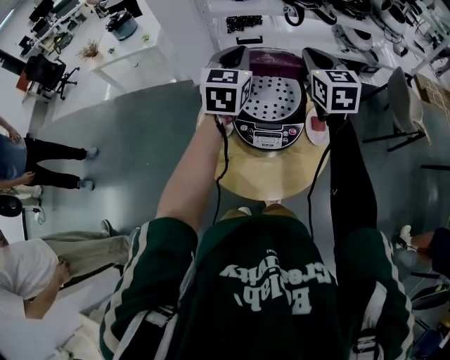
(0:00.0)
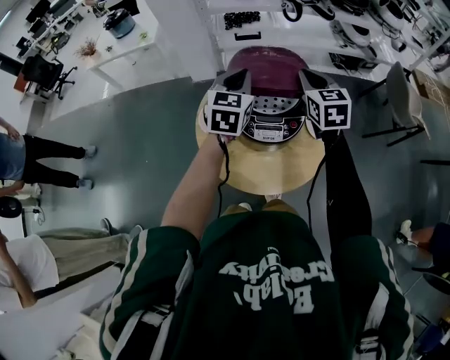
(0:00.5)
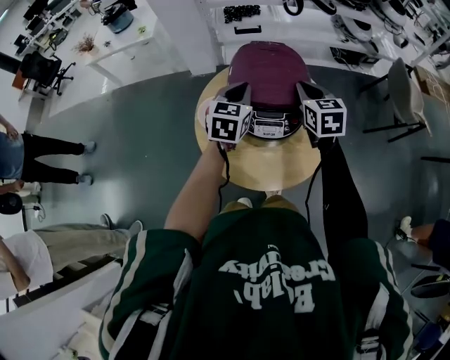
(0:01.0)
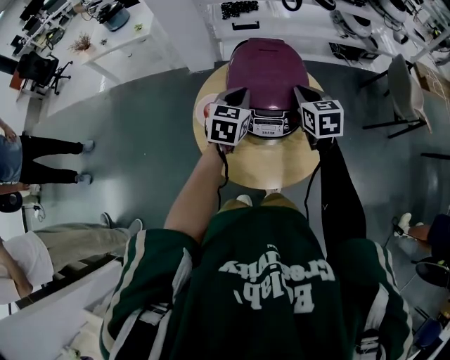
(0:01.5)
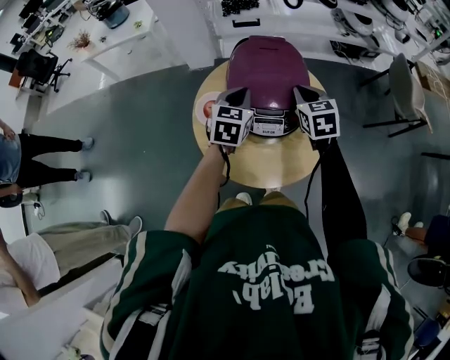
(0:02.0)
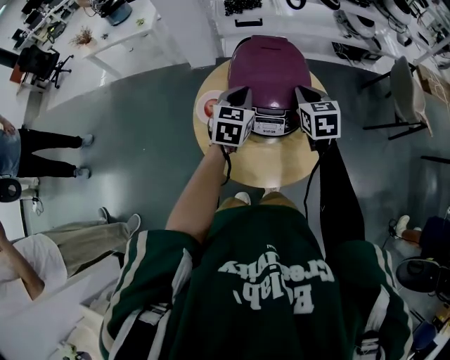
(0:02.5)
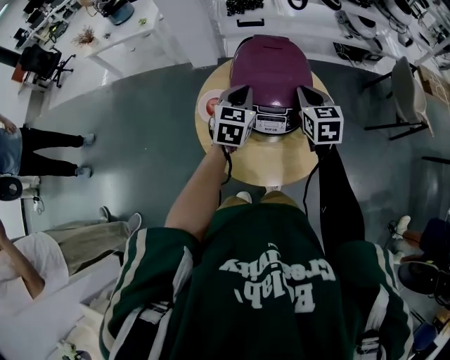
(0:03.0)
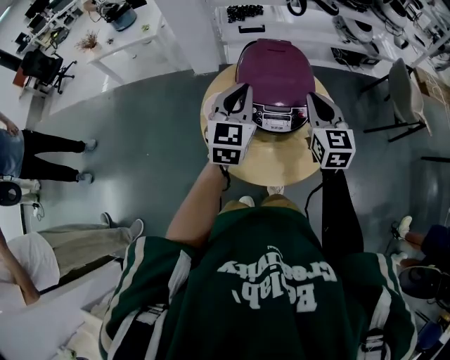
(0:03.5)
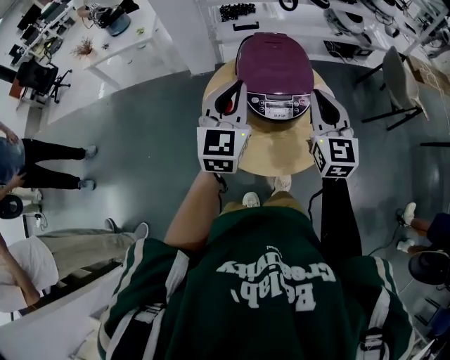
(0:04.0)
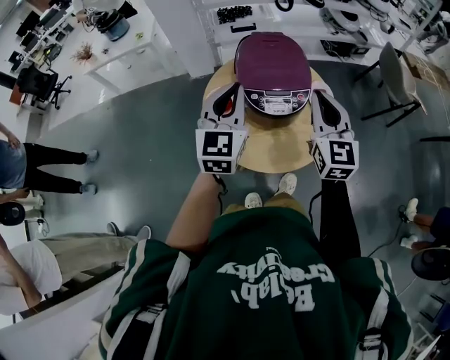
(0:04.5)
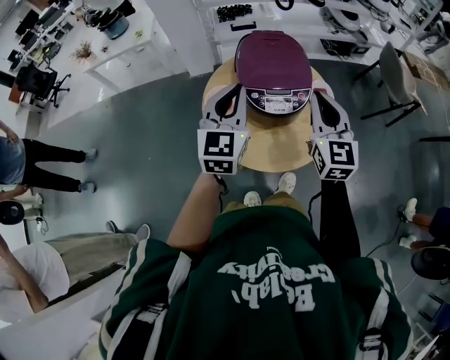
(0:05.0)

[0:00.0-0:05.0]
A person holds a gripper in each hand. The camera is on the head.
0:00.0 to 0:02.5: Both grippers travel together downward and backward, some 20 cm.
0:02.5 to 0:05.0: The right gripper goes approximately 20 cm backward and upward, and points its fingers roughly 30 degrees further upward; the left gripper is displaced upward and backward by about 20 cm, and changes its angle by approximately 20 degrees.

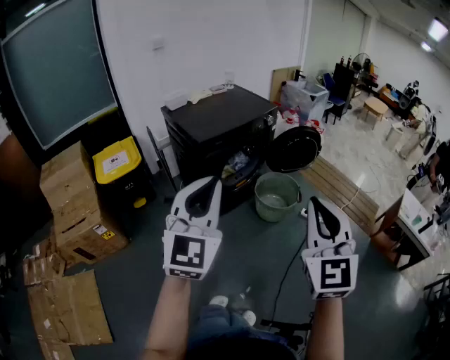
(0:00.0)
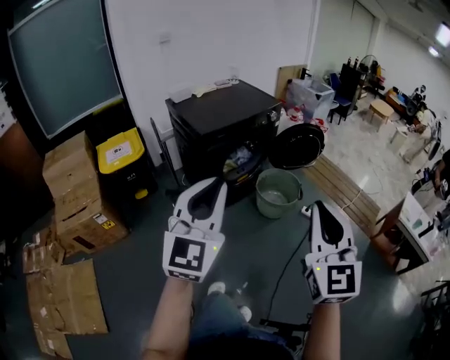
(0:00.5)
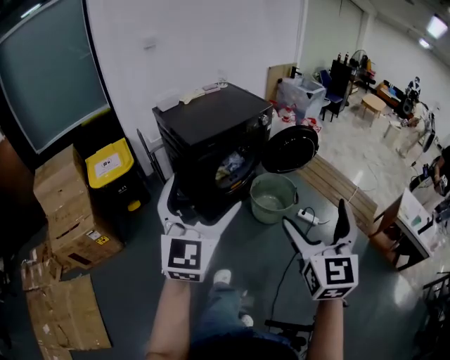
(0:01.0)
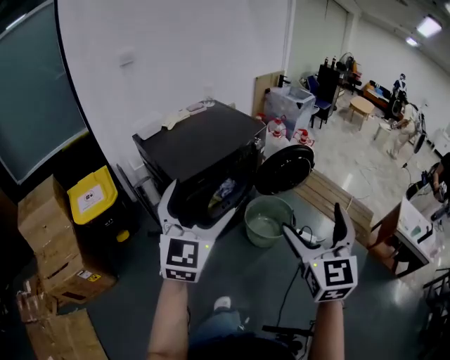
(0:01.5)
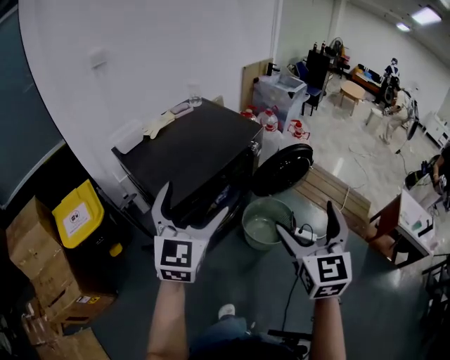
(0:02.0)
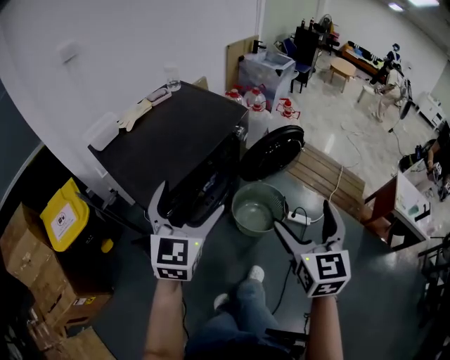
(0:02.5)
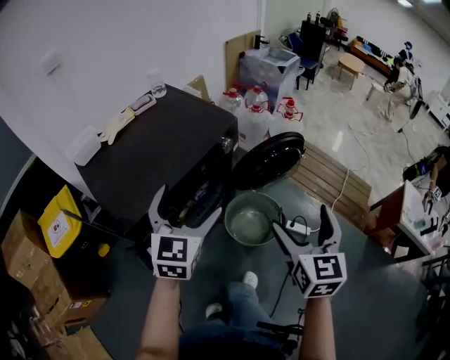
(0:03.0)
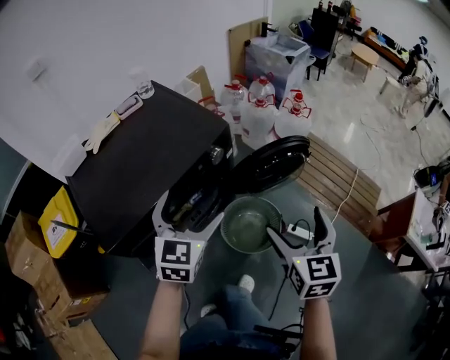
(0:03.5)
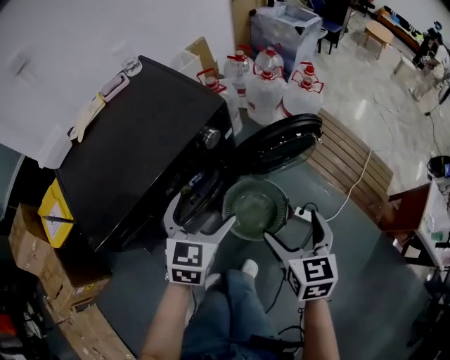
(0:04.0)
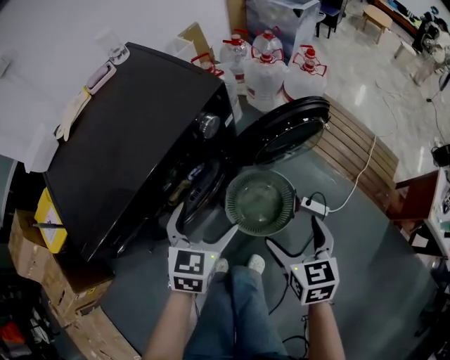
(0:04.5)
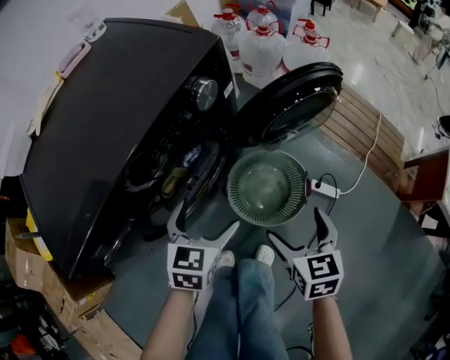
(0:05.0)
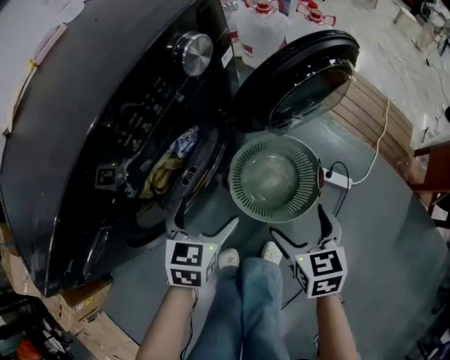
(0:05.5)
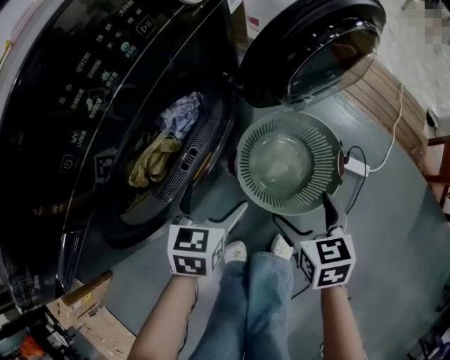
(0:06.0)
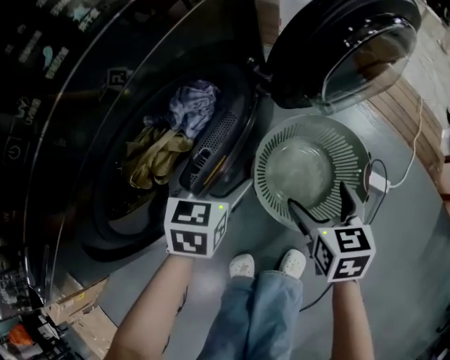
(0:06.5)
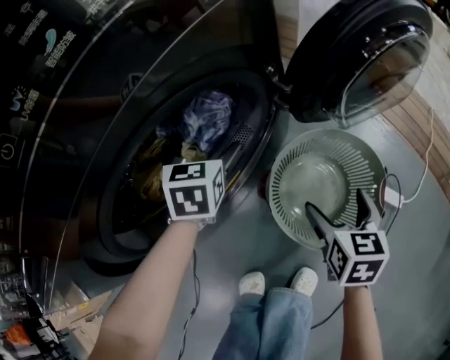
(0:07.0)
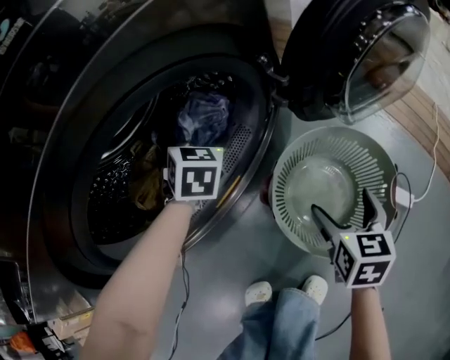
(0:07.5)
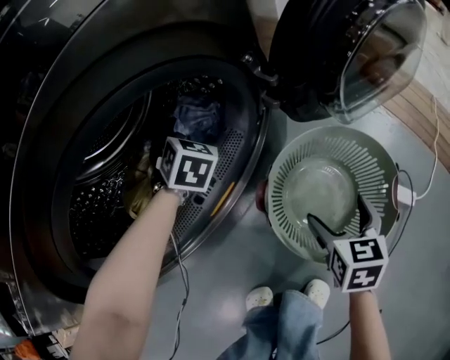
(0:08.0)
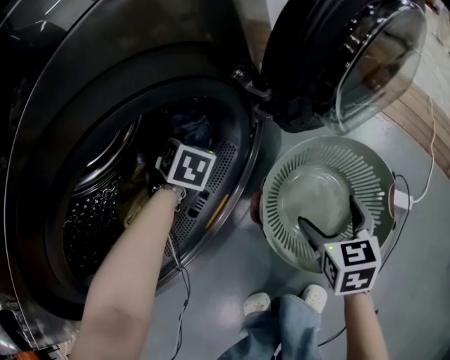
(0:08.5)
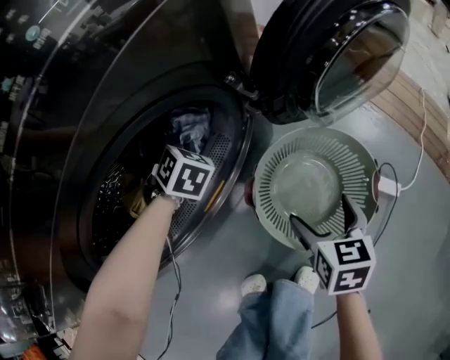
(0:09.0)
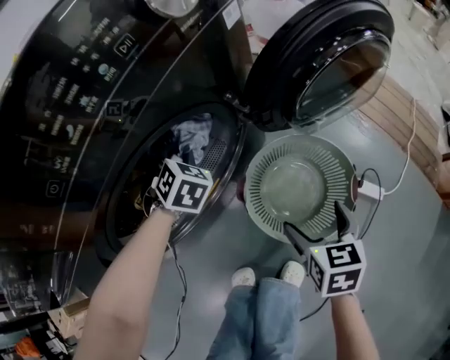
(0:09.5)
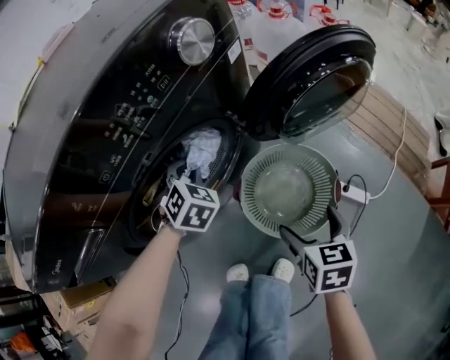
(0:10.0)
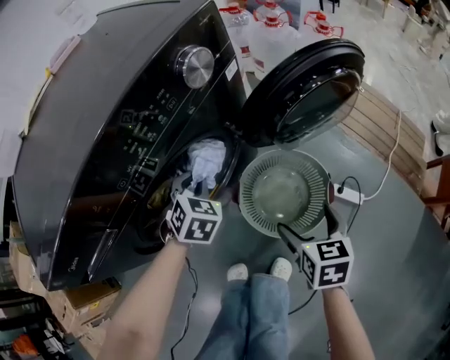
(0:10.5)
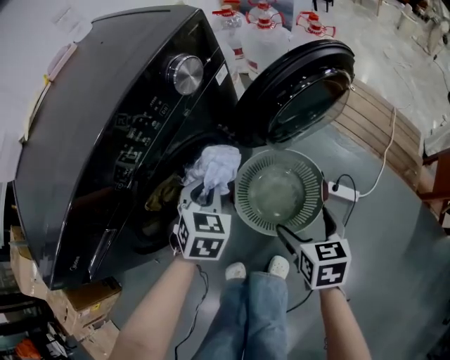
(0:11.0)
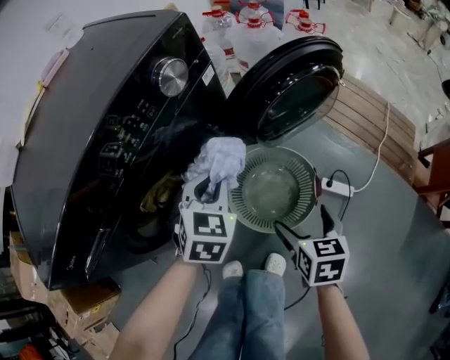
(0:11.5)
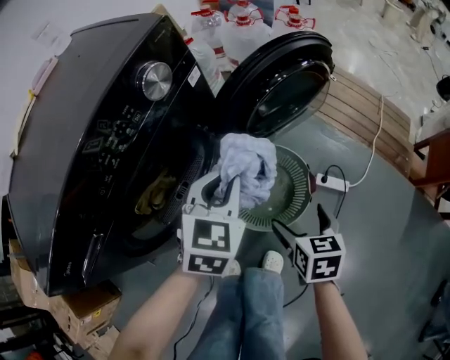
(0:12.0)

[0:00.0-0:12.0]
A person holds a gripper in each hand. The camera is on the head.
0:00.0 to 0:02.0: The grippers both shift forward by some 35 cm. The right gripper turns by roughly 20 degrees, and opens. The left gripper opens up.
0:02.0 to 0:04.0: Both grippers move forward, downward and to the right, some 40 cm. The right gripper changes its angle by about 30 degrees. Meanwhile the left gripper turns by roughly 30 degrees.
0:04.0 to 0:06.0: The grippers both shift downward by about 40 cm.
0:06.0 to 0:08.0: The left gripper travels forward by some 25 cm, and rotates some 40 degrees; the right gripper is displaced downward and forward by about 15 cm.
0:08.0 to 0:10.0: The right gripper heads upward, covering some 15 cm, while the left gripper travels backward and upward by roughly 20 cm, and closes up.
0:10.0 to 0:12.0: The right gripper shifts some 5 cm to the right, while the left gripper heads to the right, upward and backward, covering roughly 25 cm, and swivels roughly 30 degrees.

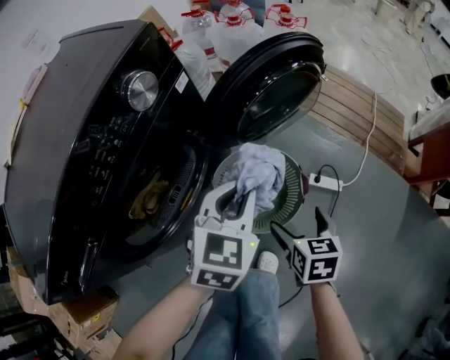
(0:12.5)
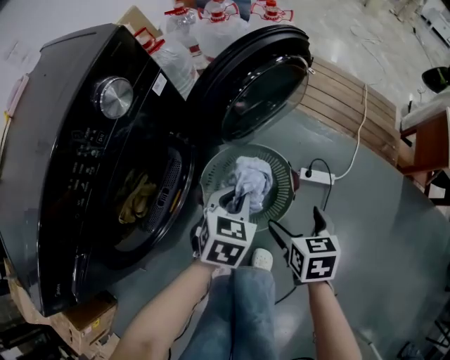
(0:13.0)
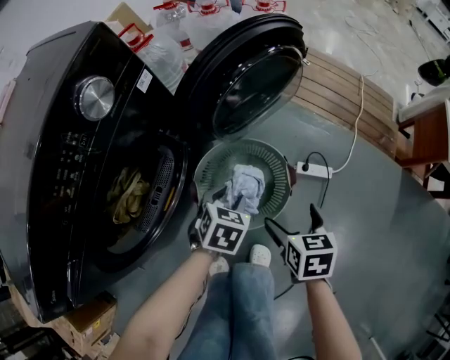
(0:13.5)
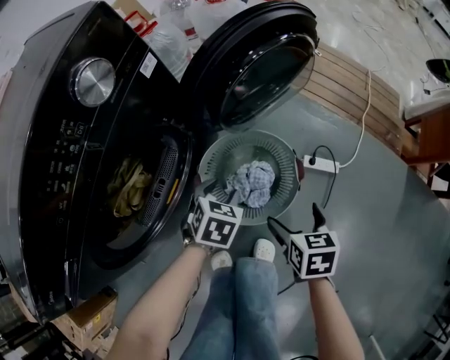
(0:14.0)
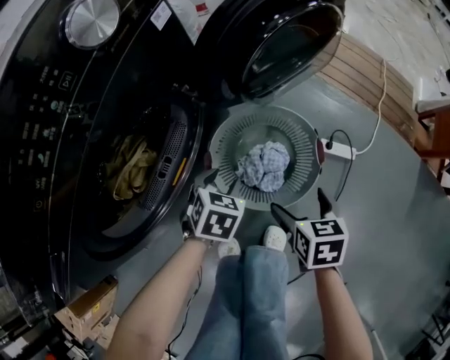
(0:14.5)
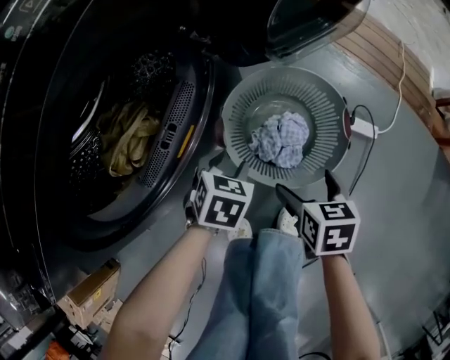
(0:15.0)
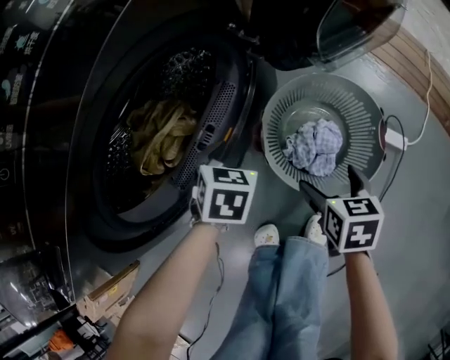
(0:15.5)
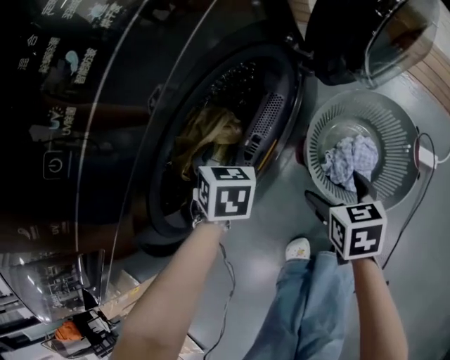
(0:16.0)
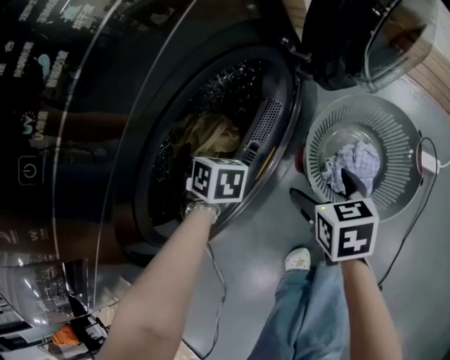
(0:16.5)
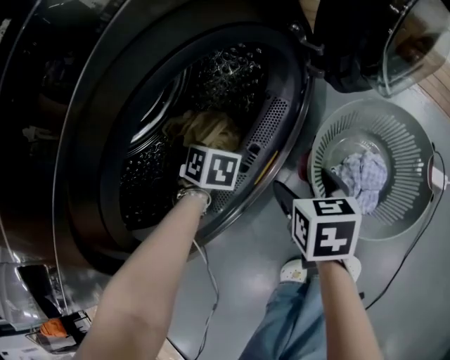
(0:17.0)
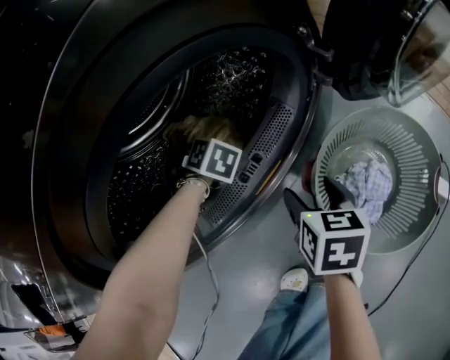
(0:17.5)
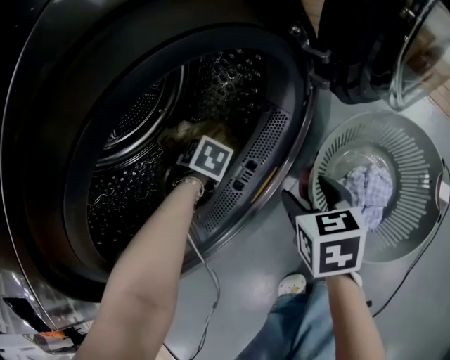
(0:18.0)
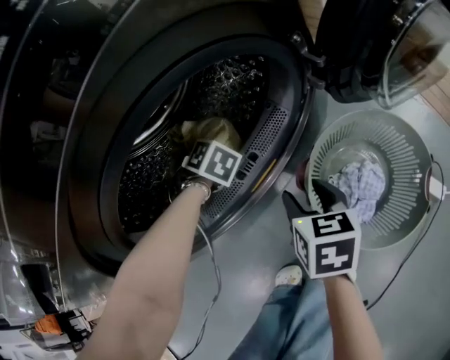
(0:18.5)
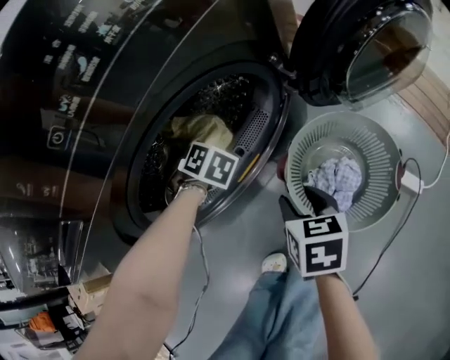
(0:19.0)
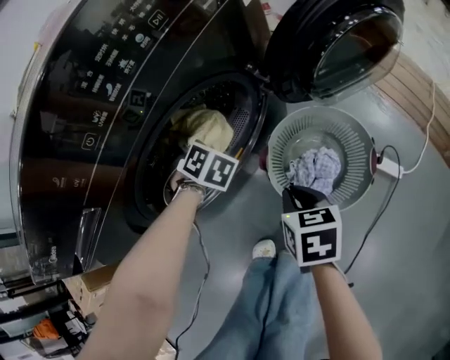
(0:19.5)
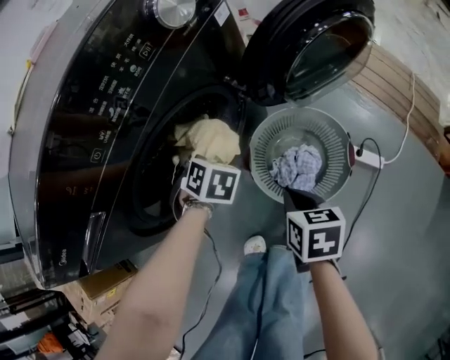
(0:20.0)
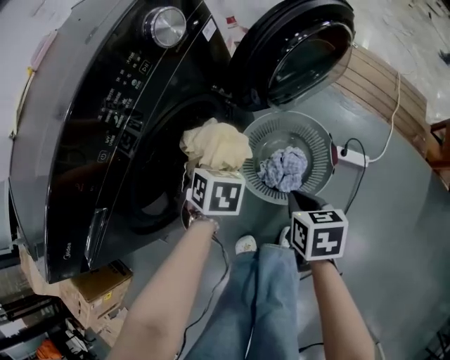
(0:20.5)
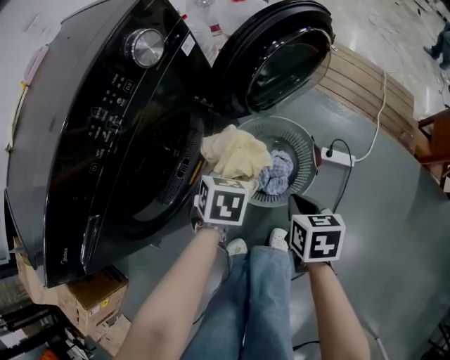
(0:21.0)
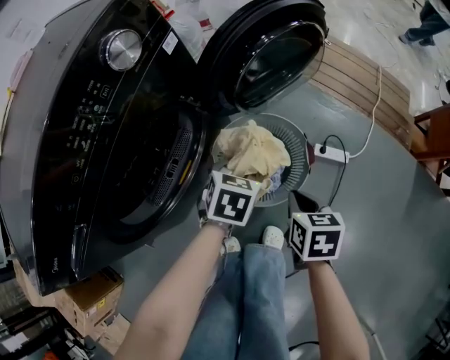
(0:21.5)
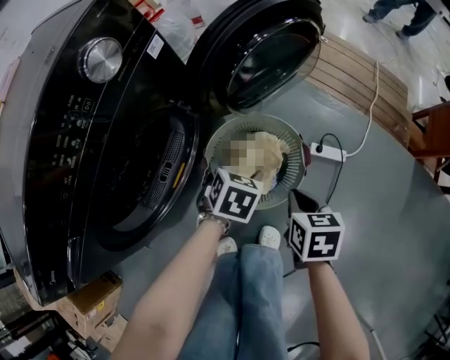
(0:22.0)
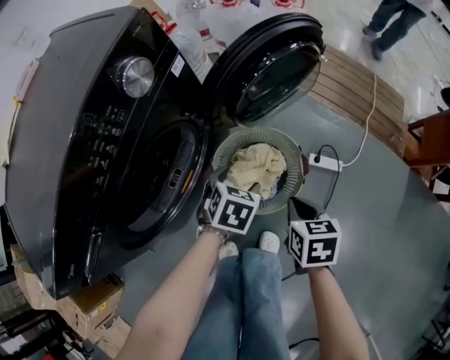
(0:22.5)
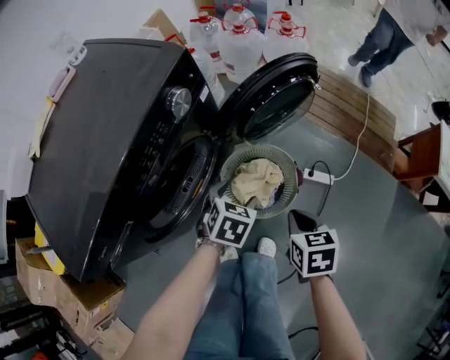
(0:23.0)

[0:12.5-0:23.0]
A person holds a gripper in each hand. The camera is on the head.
0:12.5 to 0:14.5: The right gripper shifts approximately 10 cm downward. Meanwhile the left gripper moves downward, approximately 25 cm, and rotates approximately 30 degrees.
0:14.5 to 0:16.5: The left gripper ends up about 30 cm from where it was, and swivels some 40 degrees. Meanwhile the right gripper ends up approximately 20 cm from where it was.
0:16.5 to 0:19.0: The right gripper closes, while the left gripper reaches approximately 10 cm downward, then returns, and closes its fingers.
0:19.0 to 0:21.0: The right gripper moves roughly 20 cm, rotates some 20 degrees, and closes its fingers; the left gripper ends up some 35 cm from where it was, and swivels some 40 degrees.
0:21.0 to 0:23.0: The grippers both shift upward by approximately 10 cm. The left gripper opens its fingers.
